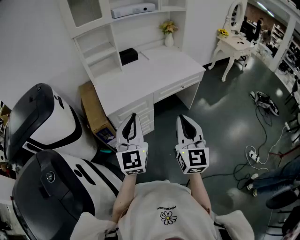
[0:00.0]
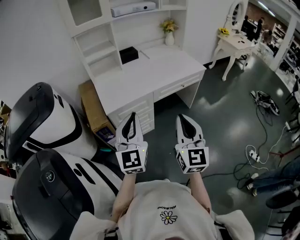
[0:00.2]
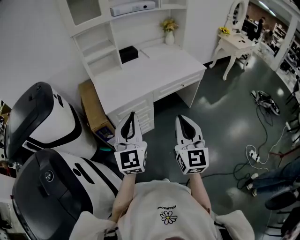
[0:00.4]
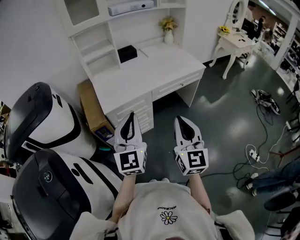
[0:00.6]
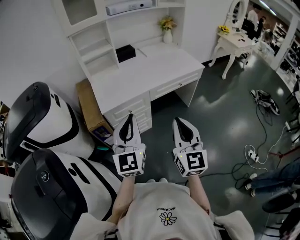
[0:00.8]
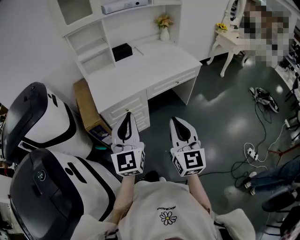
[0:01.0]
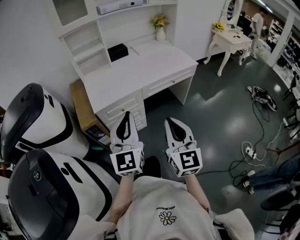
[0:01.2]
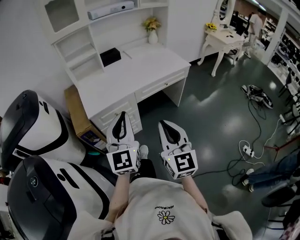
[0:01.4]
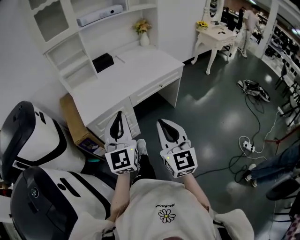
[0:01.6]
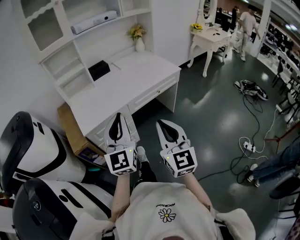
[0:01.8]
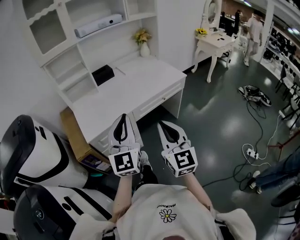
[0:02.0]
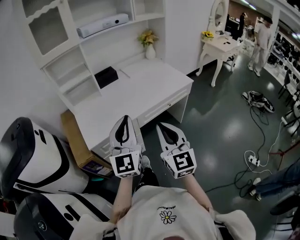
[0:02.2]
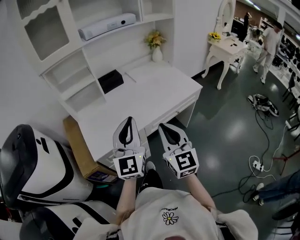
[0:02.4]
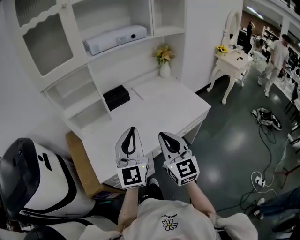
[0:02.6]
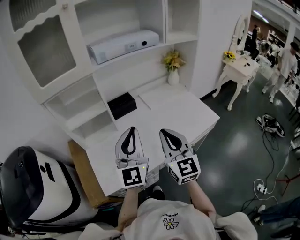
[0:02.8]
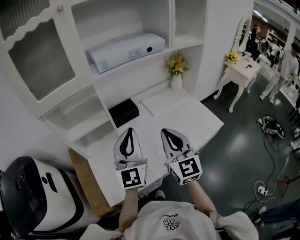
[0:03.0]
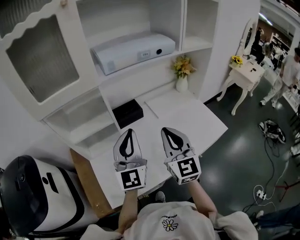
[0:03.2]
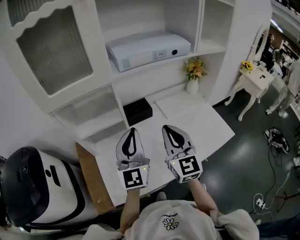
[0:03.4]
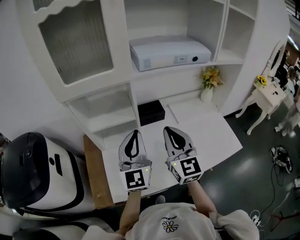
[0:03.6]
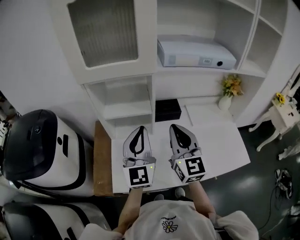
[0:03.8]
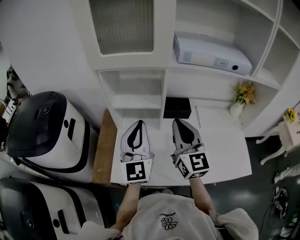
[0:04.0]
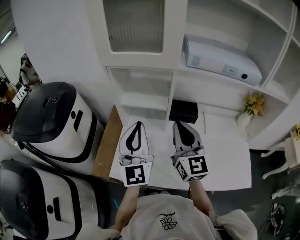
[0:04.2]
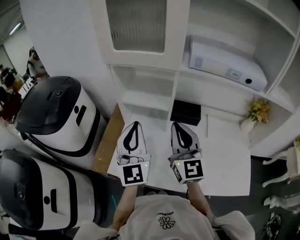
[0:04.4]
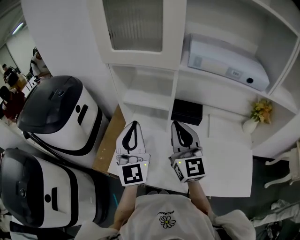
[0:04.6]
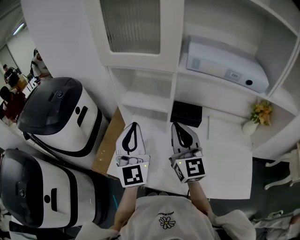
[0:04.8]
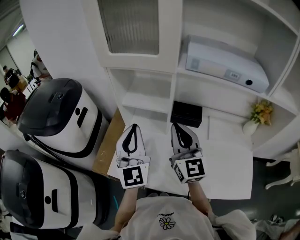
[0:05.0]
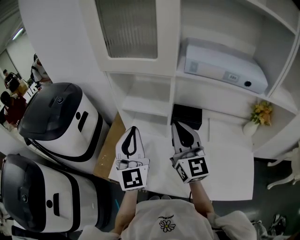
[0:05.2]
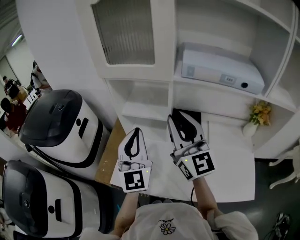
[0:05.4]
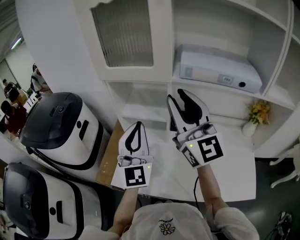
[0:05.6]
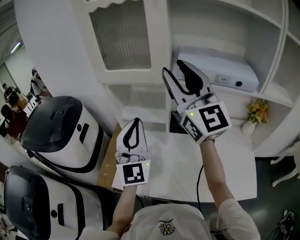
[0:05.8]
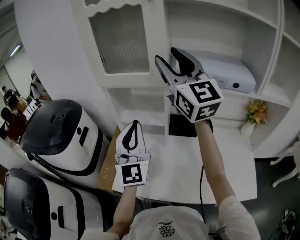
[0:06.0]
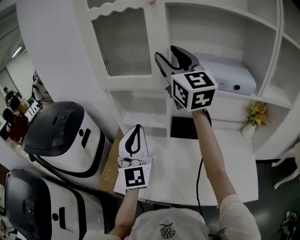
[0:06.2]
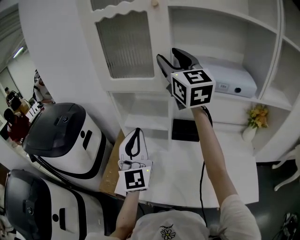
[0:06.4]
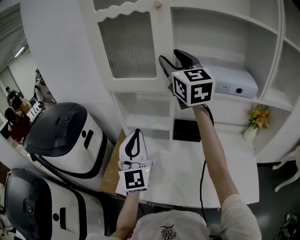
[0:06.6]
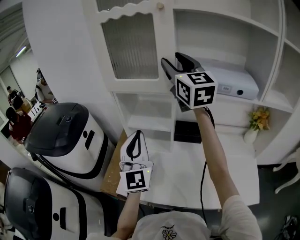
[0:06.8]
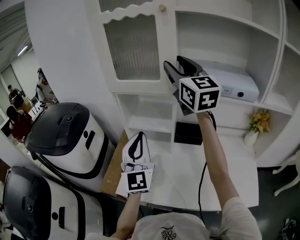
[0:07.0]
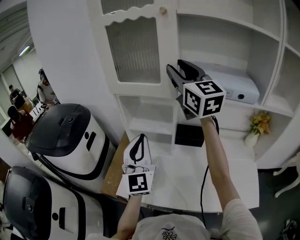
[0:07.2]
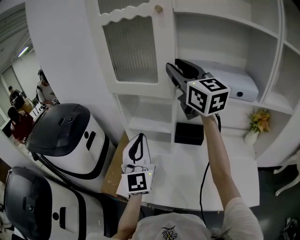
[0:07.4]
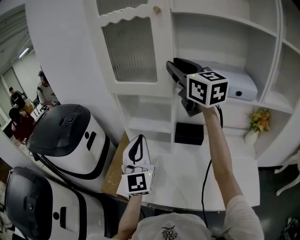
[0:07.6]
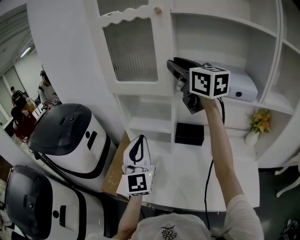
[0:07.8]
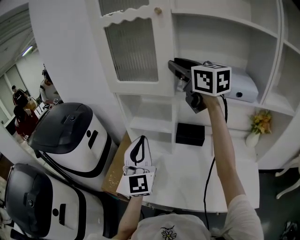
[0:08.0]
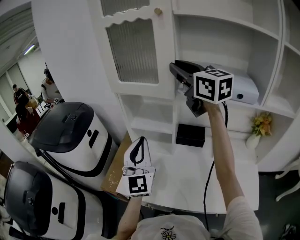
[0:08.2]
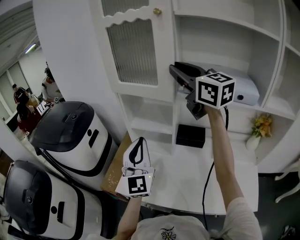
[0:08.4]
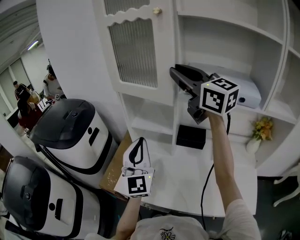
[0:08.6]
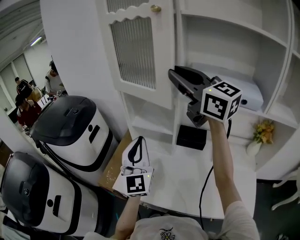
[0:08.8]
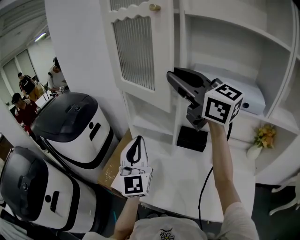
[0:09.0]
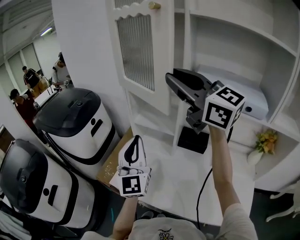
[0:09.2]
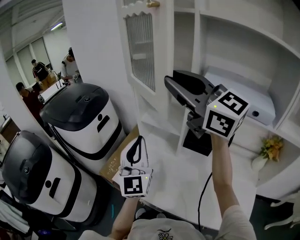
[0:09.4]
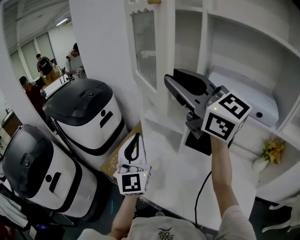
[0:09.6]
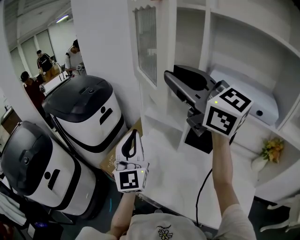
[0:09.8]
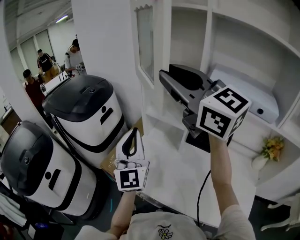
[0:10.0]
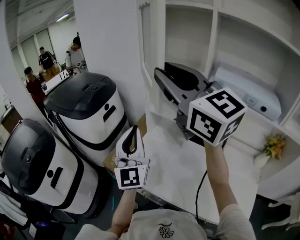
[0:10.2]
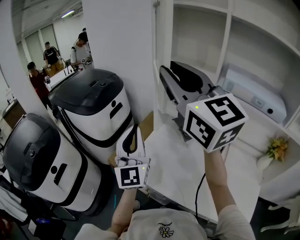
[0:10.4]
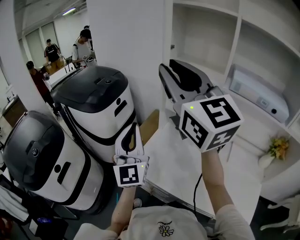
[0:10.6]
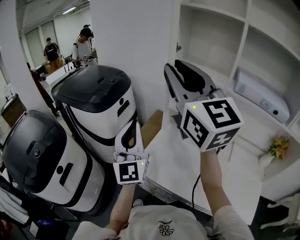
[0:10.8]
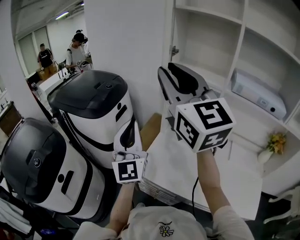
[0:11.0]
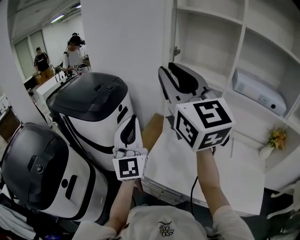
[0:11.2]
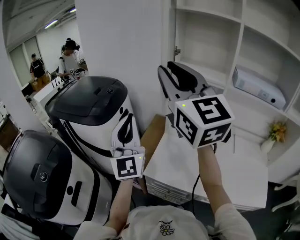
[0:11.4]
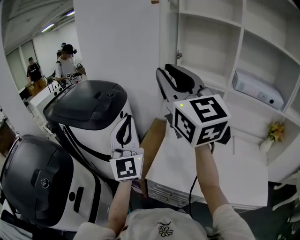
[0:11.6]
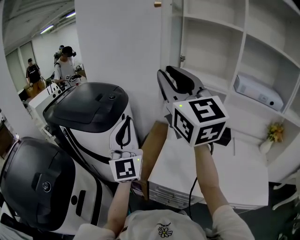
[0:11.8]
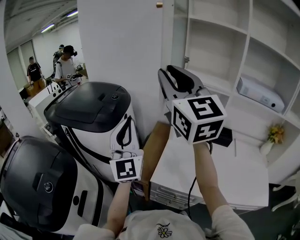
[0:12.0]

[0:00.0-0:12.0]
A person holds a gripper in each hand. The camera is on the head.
0:00.0 to 0:01.6: The right gripper ends up roughly 5 cm from where it was. The left gripper moves to the right, approximately 10 cm.
0:01.6 to 0:03.0: The pair of grippers is taken forward, about 50 cm.
0:03.0 to 0:04.4: The right gripper shifts by some 15 cm, and rotates approximately 40 degrees. Meanwhile the left gripper changes place by approximately 15 cm, and turns by about 40 degrees.
0:04.4 to 0:06.0: The right gripper shifts roughly 25 cm upward, and opens its fingers; the left gripper travels upward by approximately 5 cm.
0:06.0 to 0:07.6: The right gripper closes up.
0:07.6 to 0:09.0: The right gripper is displaced backward by approximately 5 cm, and rotates approximately 30 degrees.
0:09.0 to 0:10.4: Both grippers travel together to the left, approximately 15 cm.
0:10.4 to 0:12.0: The right gripper travels to the left by roughly 20 cm. Meanwhile the left gripper heads to the left and forward, covering about 20 cm.

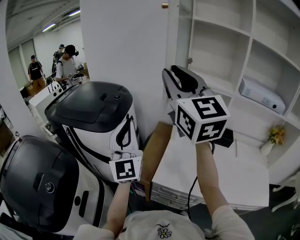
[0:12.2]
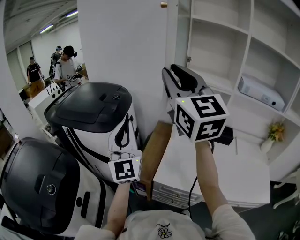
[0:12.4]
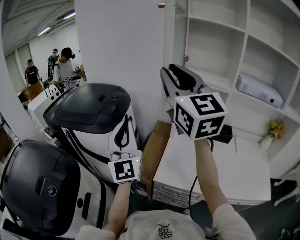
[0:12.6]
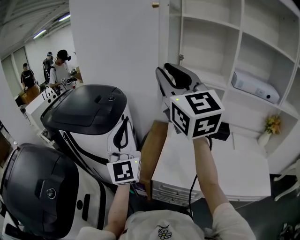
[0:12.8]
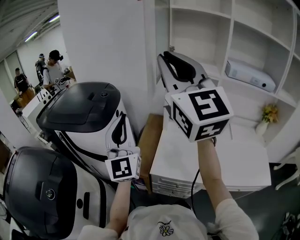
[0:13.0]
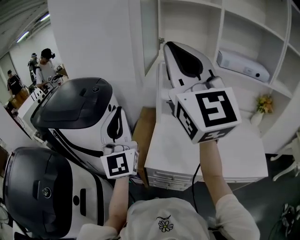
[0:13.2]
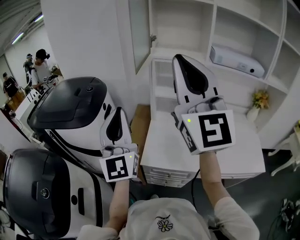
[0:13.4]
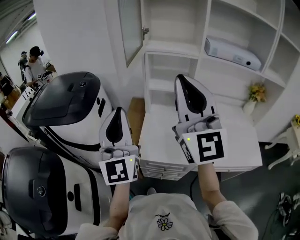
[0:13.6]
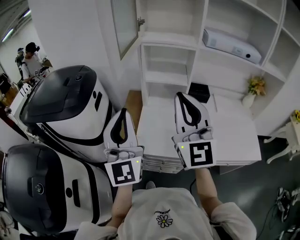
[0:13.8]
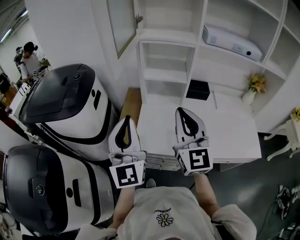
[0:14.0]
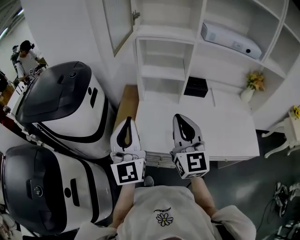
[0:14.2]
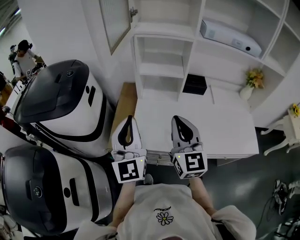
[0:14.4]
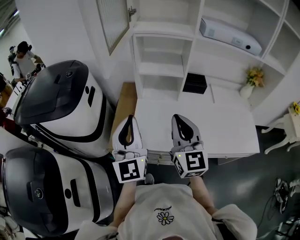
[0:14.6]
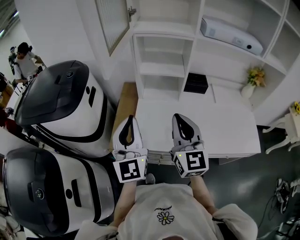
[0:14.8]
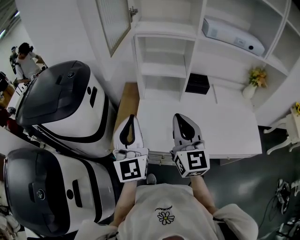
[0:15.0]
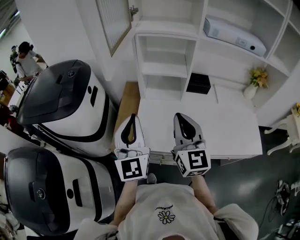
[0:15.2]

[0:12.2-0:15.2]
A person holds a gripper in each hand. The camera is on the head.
0:12.2 to 0:13.8: The right gripper heads downward, to the right and backward, covering some 25 cm, changes its angle by approximately 20 degrees, and closes up. Meanwhile the left gripper goes approximately 15 cm to the right and backward.
0:13.8 to 0:15.2: The right gripper goes some 15 cm downward, and changes its angle by some 20 degrees, while the left gripper goes approximately 10 cm downward.

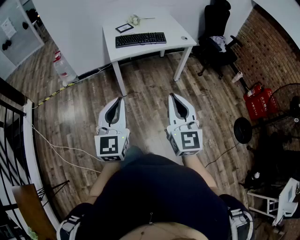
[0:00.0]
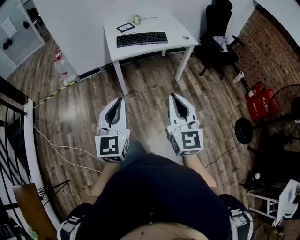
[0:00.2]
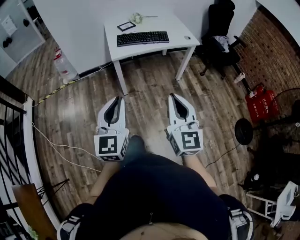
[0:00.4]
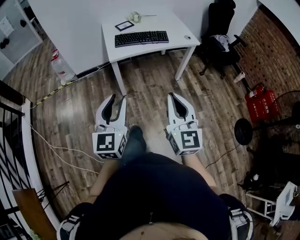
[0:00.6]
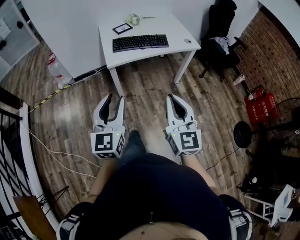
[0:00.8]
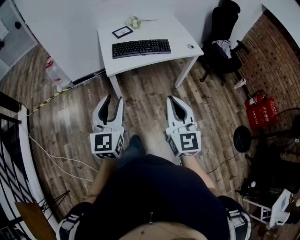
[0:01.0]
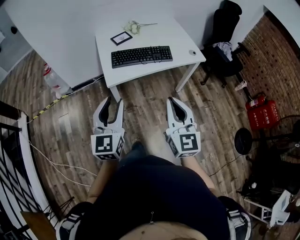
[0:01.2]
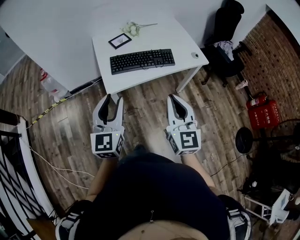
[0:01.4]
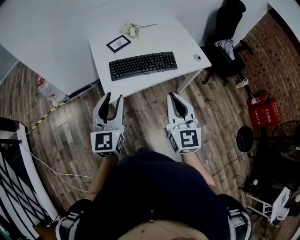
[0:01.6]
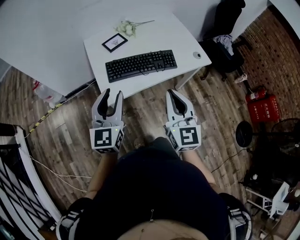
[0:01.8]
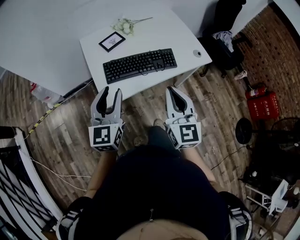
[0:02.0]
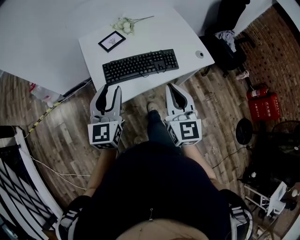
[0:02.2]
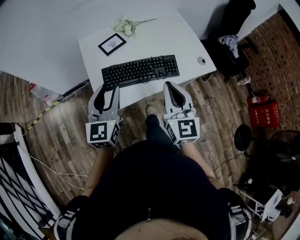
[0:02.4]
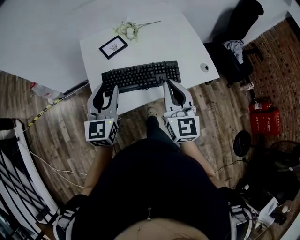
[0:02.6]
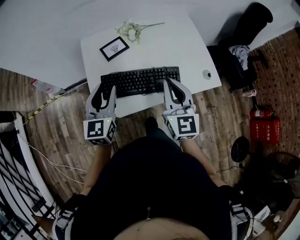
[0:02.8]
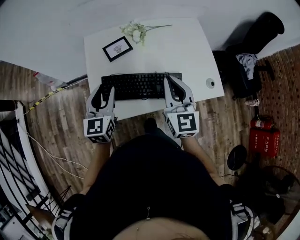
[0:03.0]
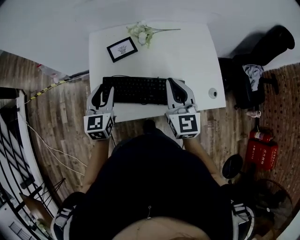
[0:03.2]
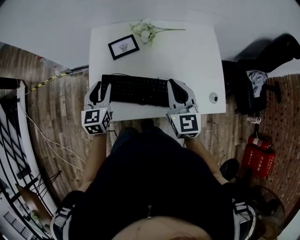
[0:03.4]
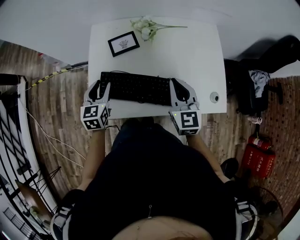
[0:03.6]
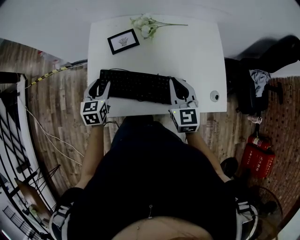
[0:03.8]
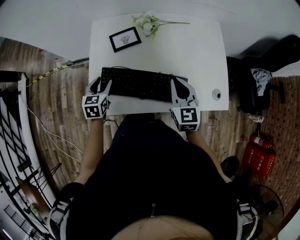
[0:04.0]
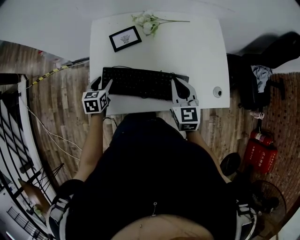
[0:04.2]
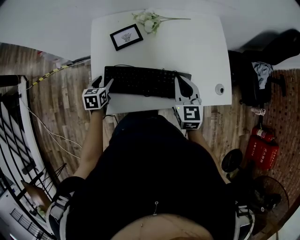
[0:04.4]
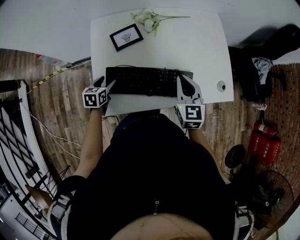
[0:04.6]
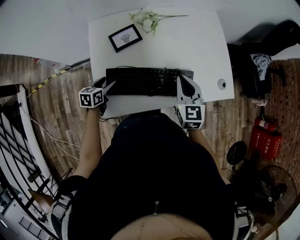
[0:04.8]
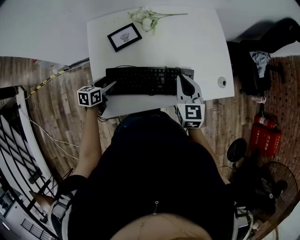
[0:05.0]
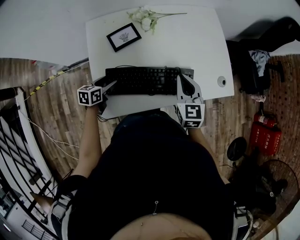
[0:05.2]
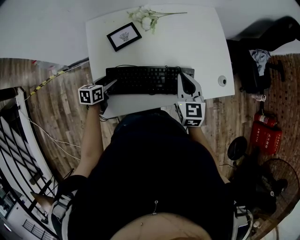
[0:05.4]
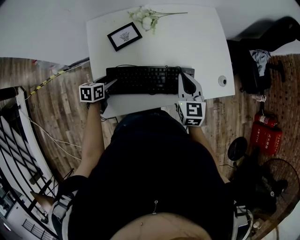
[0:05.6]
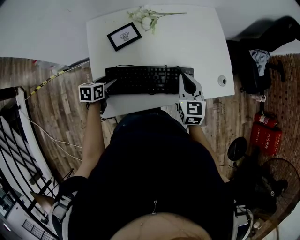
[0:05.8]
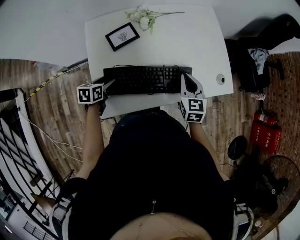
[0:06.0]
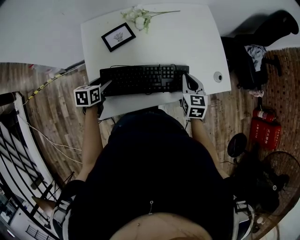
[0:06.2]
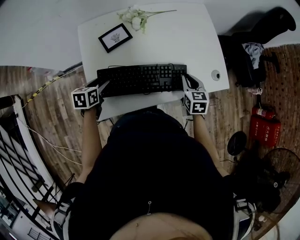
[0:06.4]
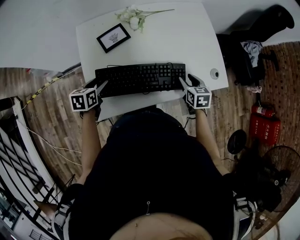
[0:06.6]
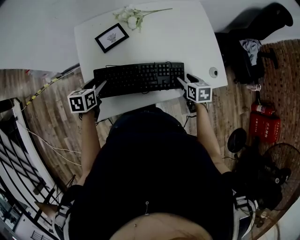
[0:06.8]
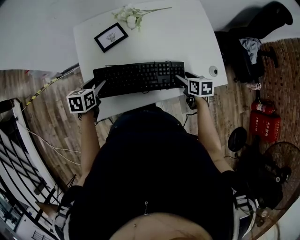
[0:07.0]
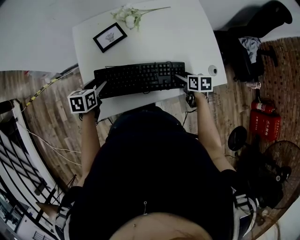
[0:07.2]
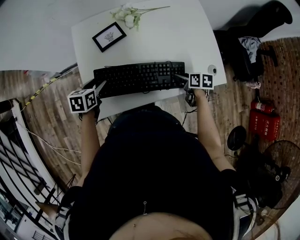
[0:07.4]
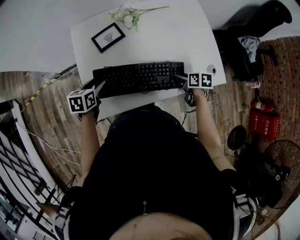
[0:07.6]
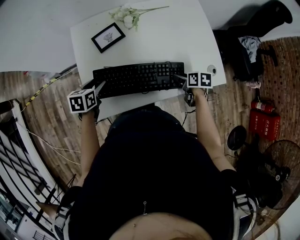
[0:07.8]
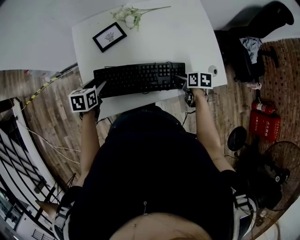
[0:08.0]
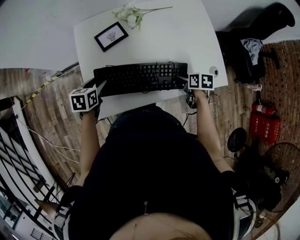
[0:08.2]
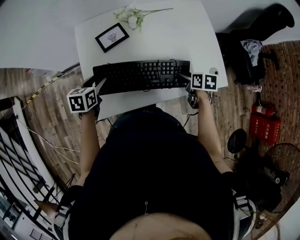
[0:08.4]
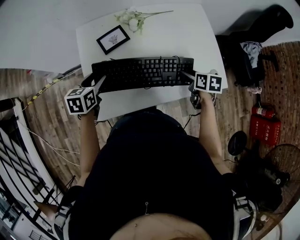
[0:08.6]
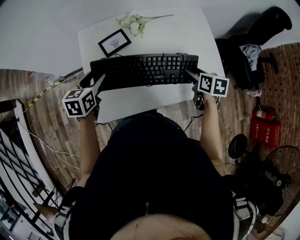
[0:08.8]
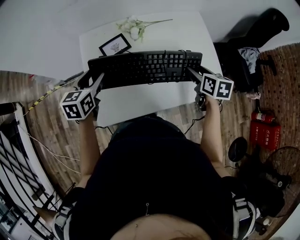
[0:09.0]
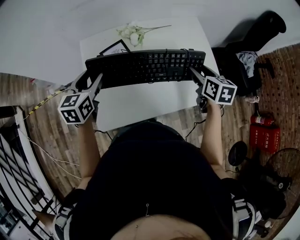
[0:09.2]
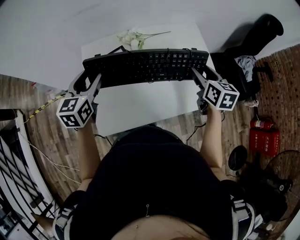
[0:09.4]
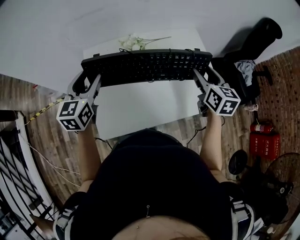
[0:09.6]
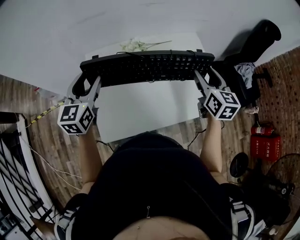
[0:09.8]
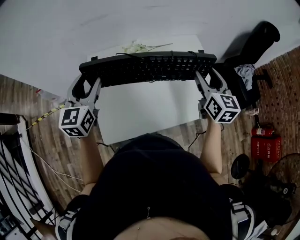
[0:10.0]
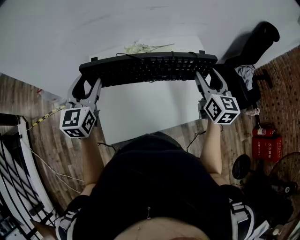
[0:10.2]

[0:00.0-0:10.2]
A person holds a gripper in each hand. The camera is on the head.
0:00.0 to 0:01.4: Both grippers move forward, approximately 35 cm. The left gripper opens up.
0:01.4 to 0:03.0: Both grippers move forward, some 35 cm.
0:03.0 to 0:04.4: The left gripper heads downward, covering approximately 20 cm, tips its fingers downward by roughly 30 degrees, and opens up. The right gripper shifts roughly 10 cm downward.
0:04.4 to 0:05.8: The left gripper rotates some 20 degrees.
0:05.8 to 0:07.2: The right gripper shifts about 15 cm downward and to the right, changes its angle by approximately 40 degrees, and opens its fingers. The left gripper heads upward, covering approximately 5 cm.
0:07.2 to 0:08.8: The two grippers go approximately 10 cm upward.
0:08.8 to 0:10.2: The grippers both shift upward by about 20 cm. The left gripper tips its fingers upward by approximately 30 degrees, while the right gripper angles its fingers upward, by about 40 degrees.
